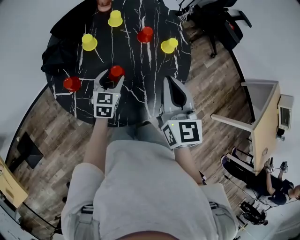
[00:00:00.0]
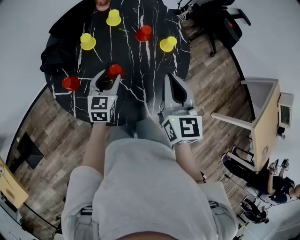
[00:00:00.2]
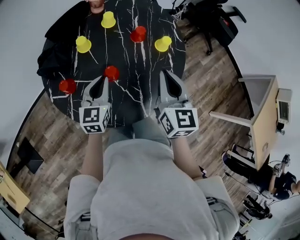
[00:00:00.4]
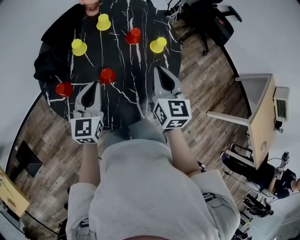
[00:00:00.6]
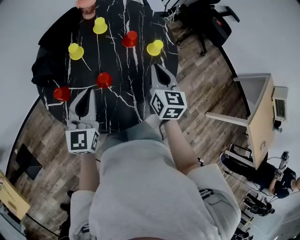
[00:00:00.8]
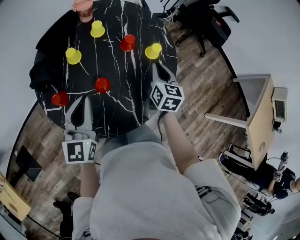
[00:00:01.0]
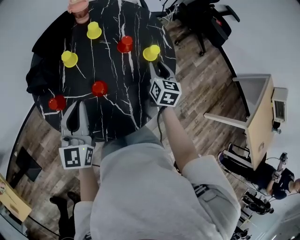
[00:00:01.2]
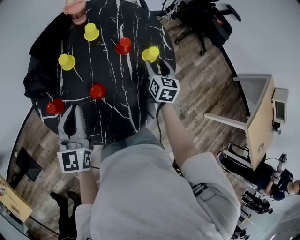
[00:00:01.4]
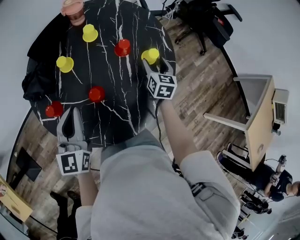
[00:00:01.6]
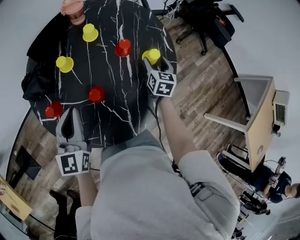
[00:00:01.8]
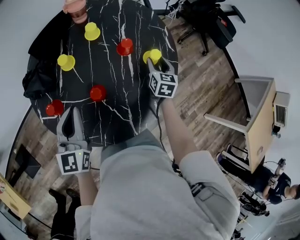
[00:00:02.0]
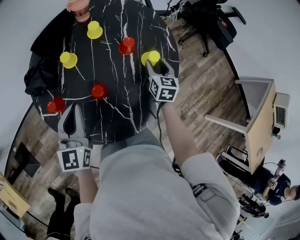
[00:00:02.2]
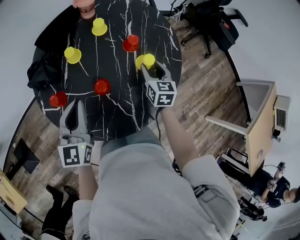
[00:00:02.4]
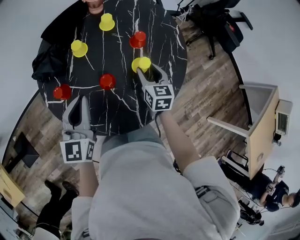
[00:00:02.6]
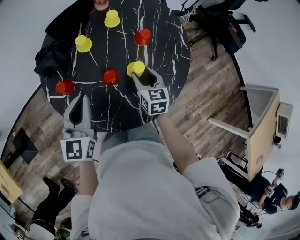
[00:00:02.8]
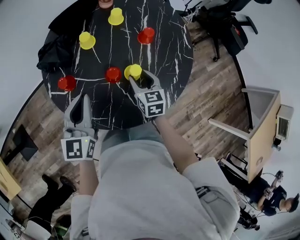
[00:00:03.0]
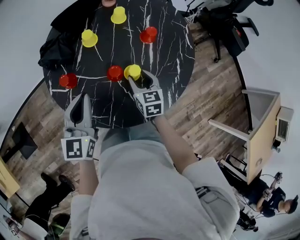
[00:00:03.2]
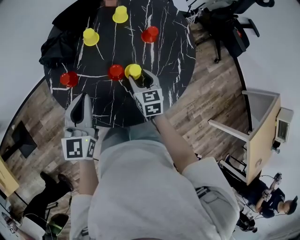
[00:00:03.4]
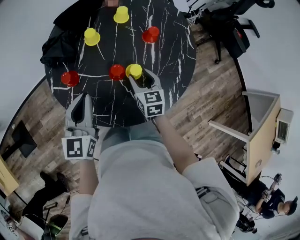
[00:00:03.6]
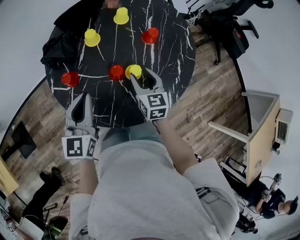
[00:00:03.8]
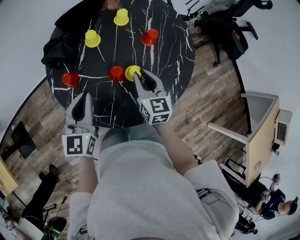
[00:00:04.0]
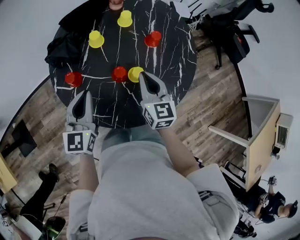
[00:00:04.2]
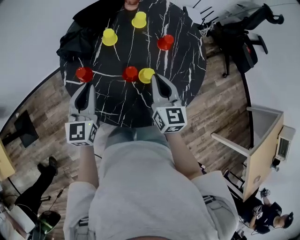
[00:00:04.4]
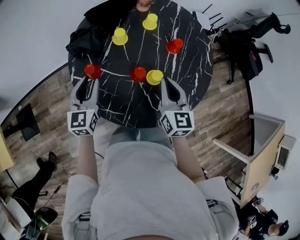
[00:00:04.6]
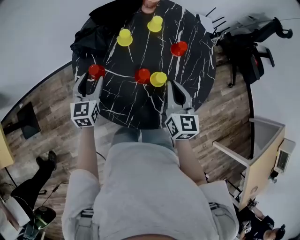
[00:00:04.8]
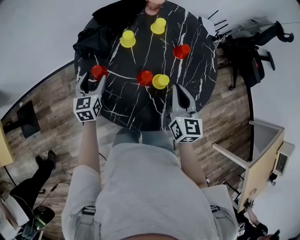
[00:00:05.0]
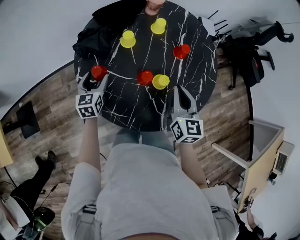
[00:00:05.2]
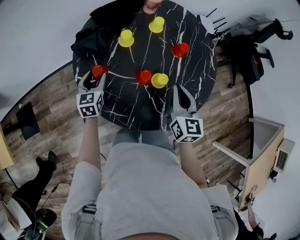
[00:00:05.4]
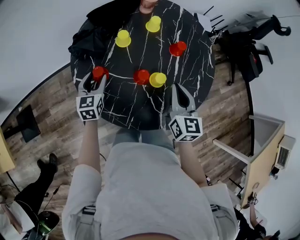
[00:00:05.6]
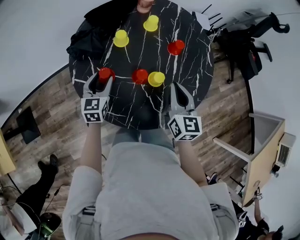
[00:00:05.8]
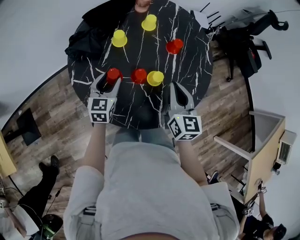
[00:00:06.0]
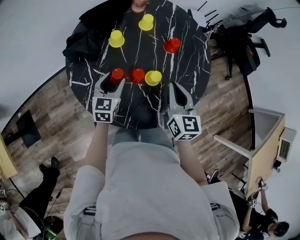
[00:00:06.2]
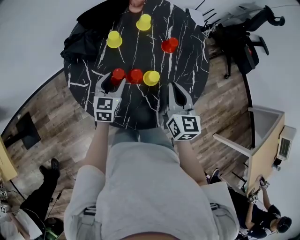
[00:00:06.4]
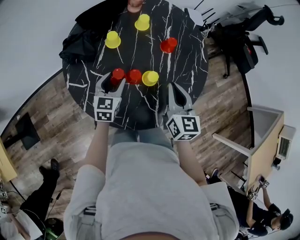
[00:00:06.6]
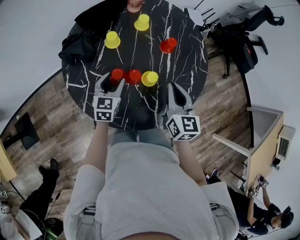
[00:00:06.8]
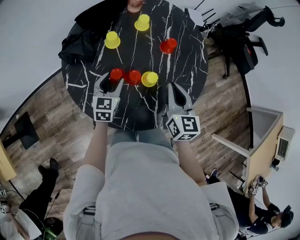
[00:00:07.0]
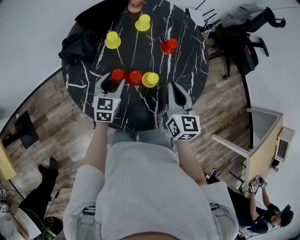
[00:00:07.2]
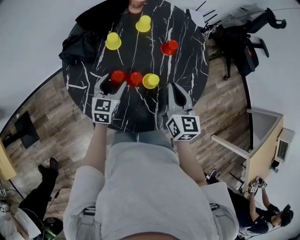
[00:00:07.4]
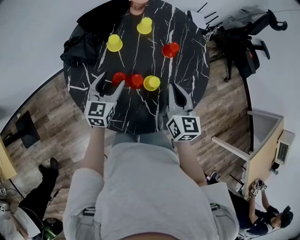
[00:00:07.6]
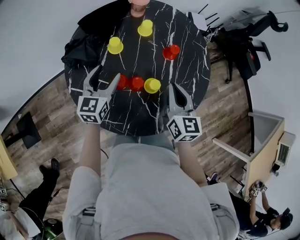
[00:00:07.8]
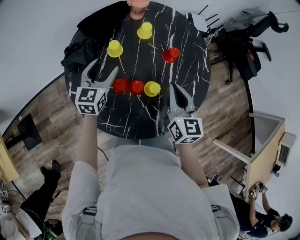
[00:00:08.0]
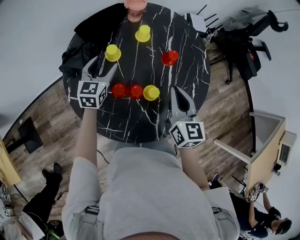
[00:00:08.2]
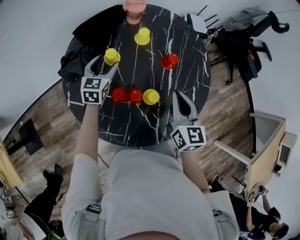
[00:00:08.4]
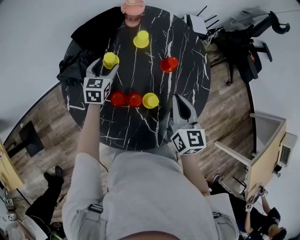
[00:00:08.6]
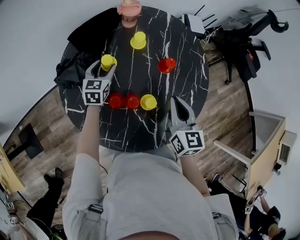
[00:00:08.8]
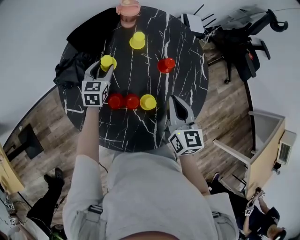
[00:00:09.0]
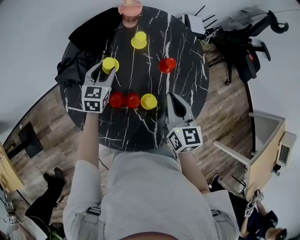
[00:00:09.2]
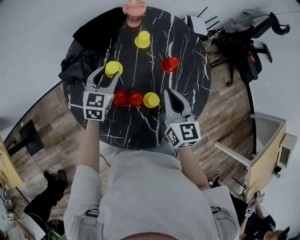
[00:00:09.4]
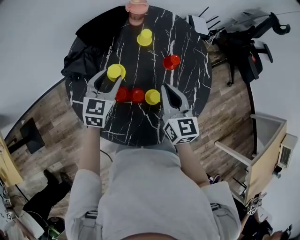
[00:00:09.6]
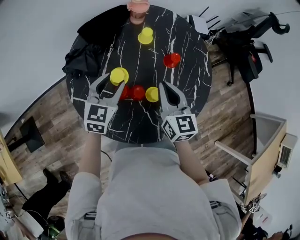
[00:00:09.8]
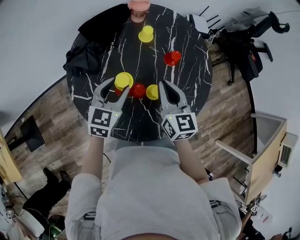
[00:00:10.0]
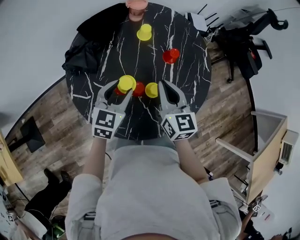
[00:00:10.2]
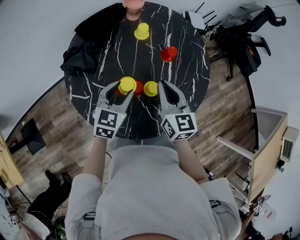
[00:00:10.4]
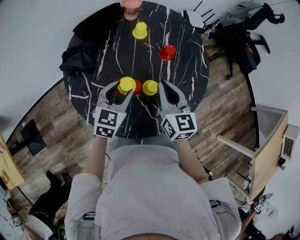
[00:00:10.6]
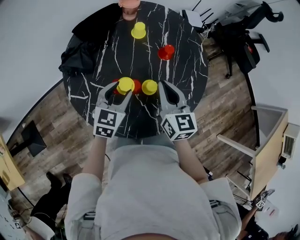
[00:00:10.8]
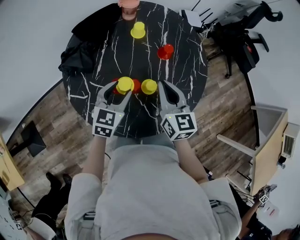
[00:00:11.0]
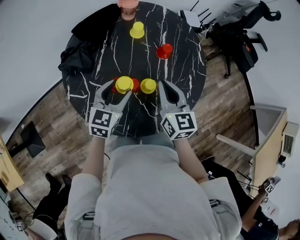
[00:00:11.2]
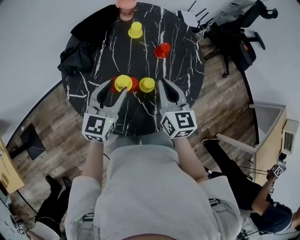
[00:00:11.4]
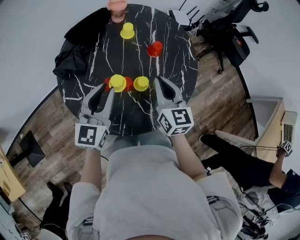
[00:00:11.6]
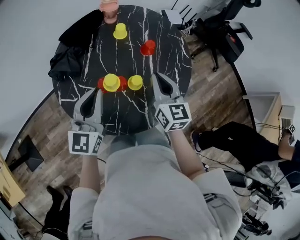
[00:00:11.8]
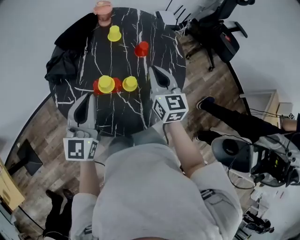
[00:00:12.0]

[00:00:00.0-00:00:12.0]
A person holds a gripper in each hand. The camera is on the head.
00:00:00.0 to 00:00:01.6: The right gripper moves downward, forward and to the right, roughly 30 cm, swivels roughly 20 degrees, and opens, while the left gripper heads upward and to the left, covering about 15 cm, changes its angle by approximately 20 degrees, and closes up.
00:00:01.6 to 00:00:03.0: The right gripper is displaced to the left and backward by some 20 cm, and changes its angle by about 20 degrees. Meanwhile the left gripper shifts by some 5 cm.
00:00:03.0 to 00:00:04.4: The right gripper heads upward, covering about 10 cm, and closes its fingers, while the left gripper shifts by some 5 cm.
00:00:04.4 to 00:00:06.0: The left gripper shifts some 10 cm downward, and opens its fingers.
00:00:06.0 to 00:00:07.6: The grippers stay close to where they were, moving slightly.
00:00:07.6 to 00:00:09.0: The left gripper moves forward, roughly 15 cm.
00:00:09.0 to 00:00:10.4: The left gripper heads backward, upward and to the right, covering some 20 cm. Meanwhile the right gripper is displaced to the left by roughly 5 cm.
00:00:10.4 to 00:00:12.0: The right gripper heads to the right, covering approximately 5 cm; the left gripper shifts approximately 15 cm upward and backward, swivels roughly 30 degrees, and closes up.

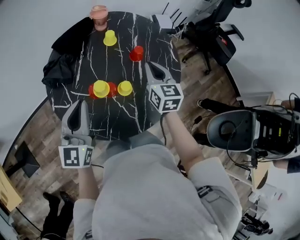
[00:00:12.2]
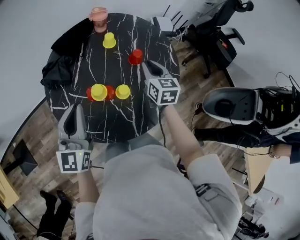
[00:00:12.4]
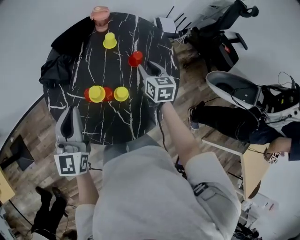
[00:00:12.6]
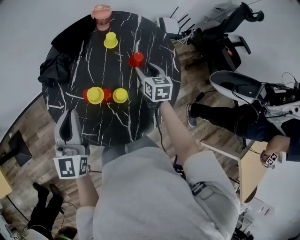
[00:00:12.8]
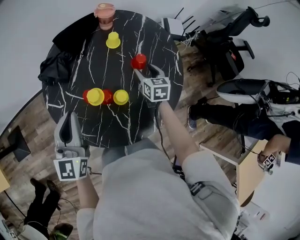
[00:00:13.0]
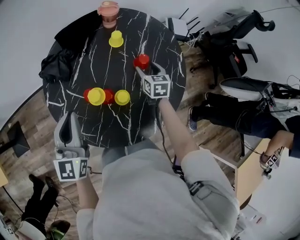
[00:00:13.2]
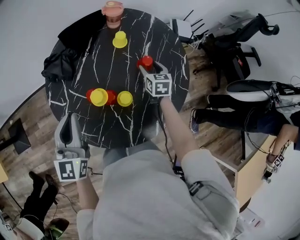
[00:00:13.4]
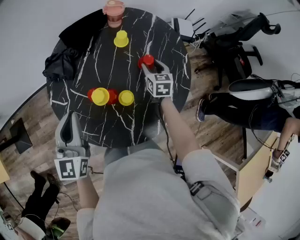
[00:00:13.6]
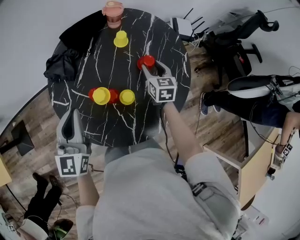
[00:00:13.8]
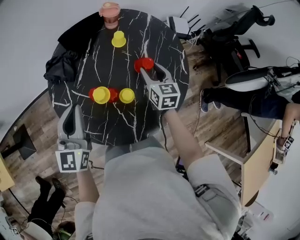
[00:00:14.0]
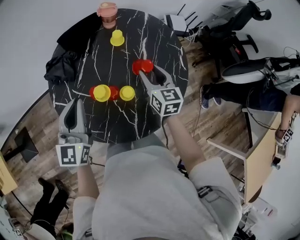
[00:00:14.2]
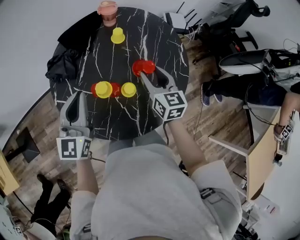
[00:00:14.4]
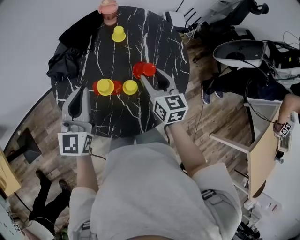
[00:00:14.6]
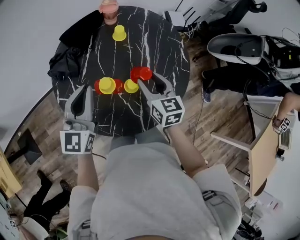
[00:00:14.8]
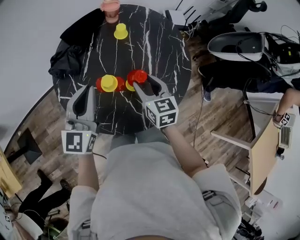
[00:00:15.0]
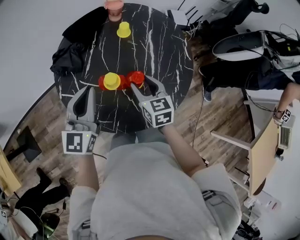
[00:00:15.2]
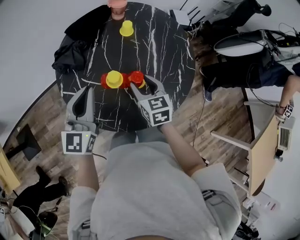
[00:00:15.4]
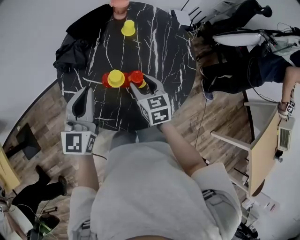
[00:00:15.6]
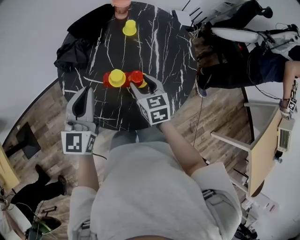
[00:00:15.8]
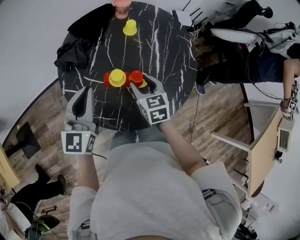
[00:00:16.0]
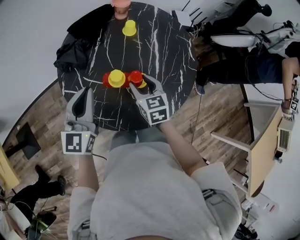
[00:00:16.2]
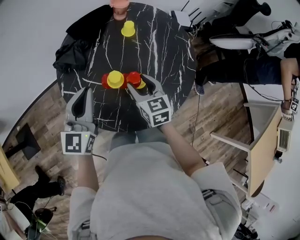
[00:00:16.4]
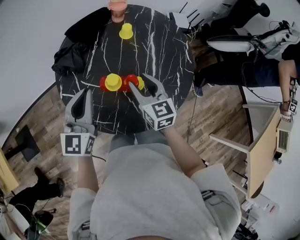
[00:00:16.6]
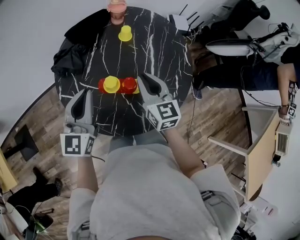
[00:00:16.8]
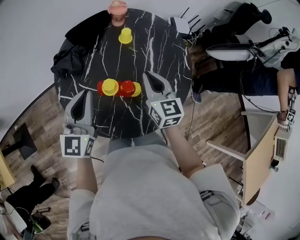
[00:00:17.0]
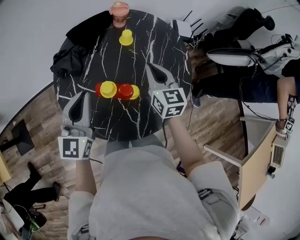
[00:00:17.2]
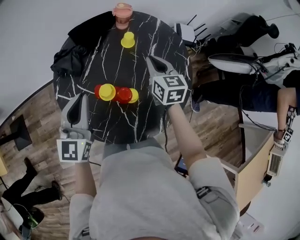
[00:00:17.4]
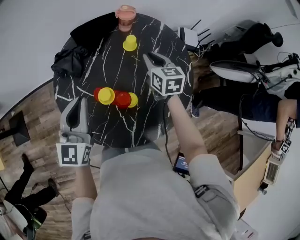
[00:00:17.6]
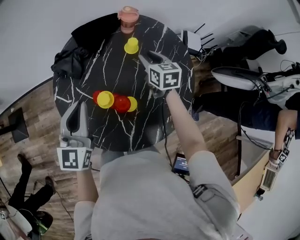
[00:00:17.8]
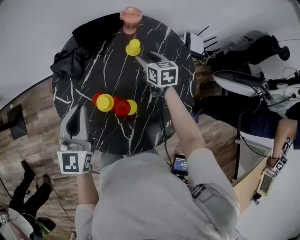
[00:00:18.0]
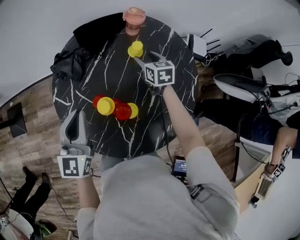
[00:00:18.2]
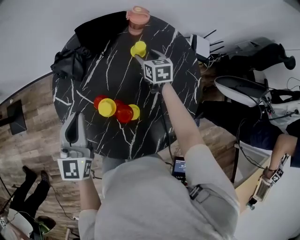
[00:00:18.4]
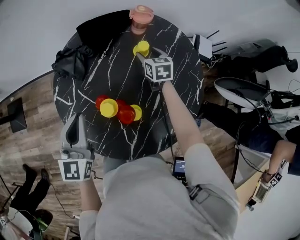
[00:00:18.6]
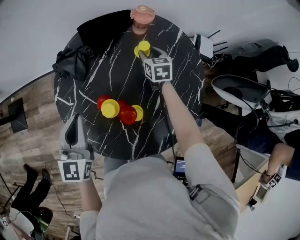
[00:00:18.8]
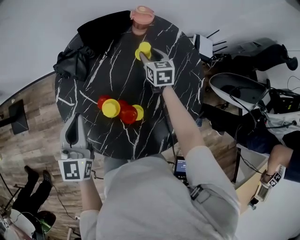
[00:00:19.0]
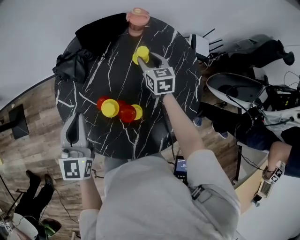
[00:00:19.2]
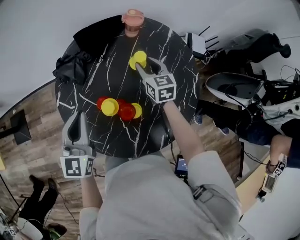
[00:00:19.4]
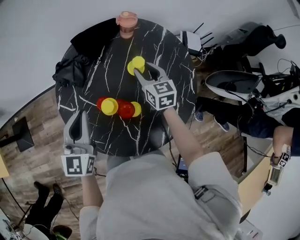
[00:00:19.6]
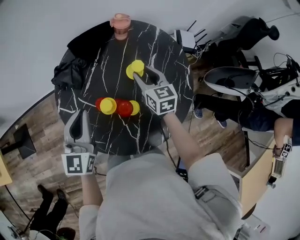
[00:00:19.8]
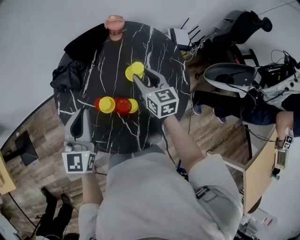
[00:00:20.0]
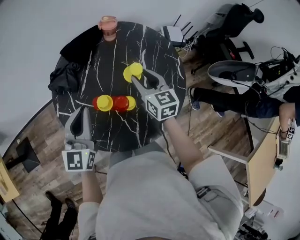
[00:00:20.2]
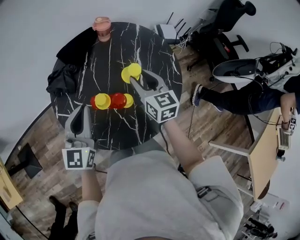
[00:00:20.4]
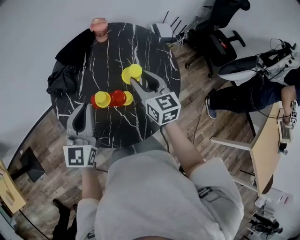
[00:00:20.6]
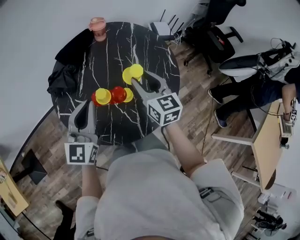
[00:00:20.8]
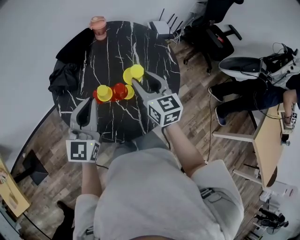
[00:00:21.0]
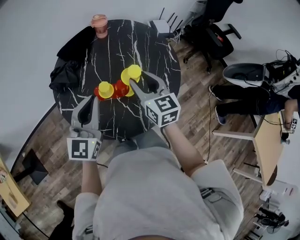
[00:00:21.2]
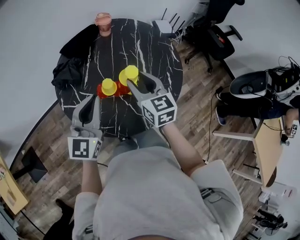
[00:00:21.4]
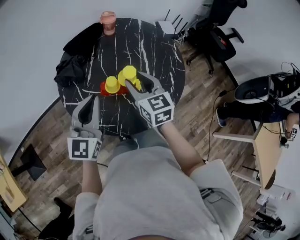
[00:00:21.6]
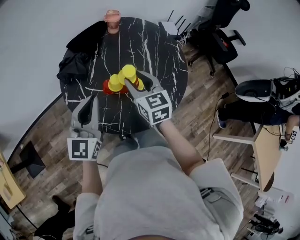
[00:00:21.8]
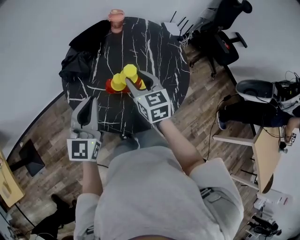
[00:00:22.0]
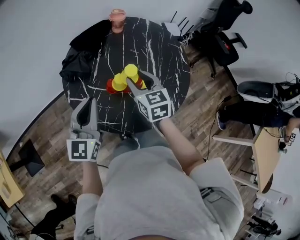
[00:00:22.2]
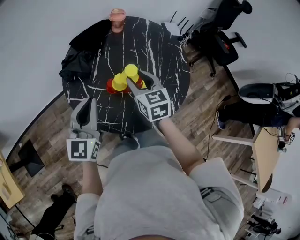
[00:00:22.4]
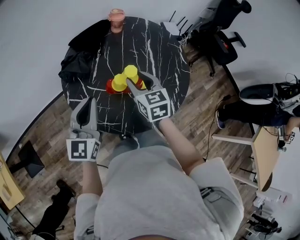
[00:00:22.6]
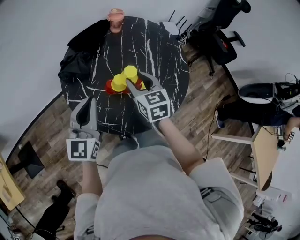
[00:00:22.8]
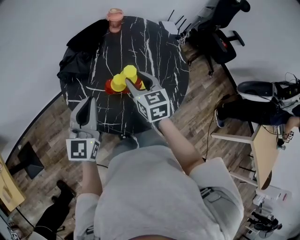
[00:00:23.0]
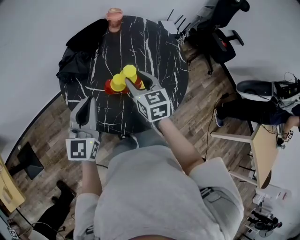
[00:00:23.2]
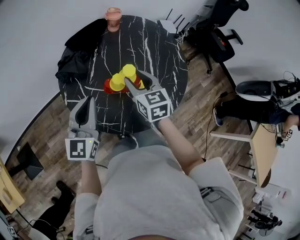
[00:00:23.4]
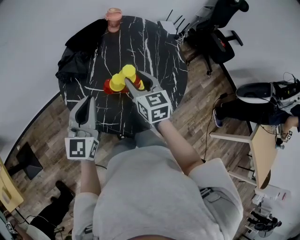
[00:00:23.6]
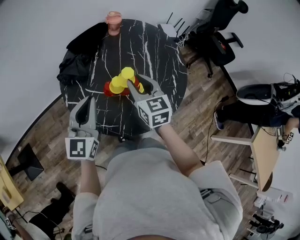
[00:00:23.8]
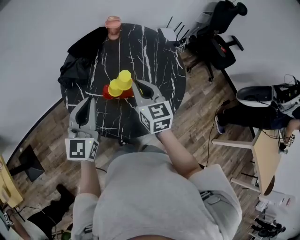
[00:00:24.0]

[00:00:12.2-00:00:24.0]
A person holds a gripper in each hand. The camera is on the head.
00:00:12.2 to 00:00:13.6: The right gripper heads downward and forward, covering approximately 20 cm, and opens its fingers.
00:00:13.6 to 00:00:15.2: The right gripper moves backward, to the left and upward, about 20 cm.
00:00:15.2 to 00:00:16.6: The grippers make only small movements.
00:00:16.6 to 00:00:18.2: The right gripper is displaced forward and downward by some 25 cm, rotates some 20 degrees, and closes, then reopens; the left gripper turns by about 20 degrees.
00:00:18.2 to 00:00:19.6: The right gripper moves backward and upward, some 10 cm.
00:00:19.6 to 00:00:21.0: The right gripper moves backward and upward, some 20 cm; the left gripper shifts by roughly 10 cm, and changes its angle by roughly 30 degrees.
00:00:21.0 to 00:00:22.6: Both grippers travel together to the left, some 10 cm.
00:00:22.6 to 00:00:24.0: The right gripper moves roughly 5 cm, and closes its fingers.
